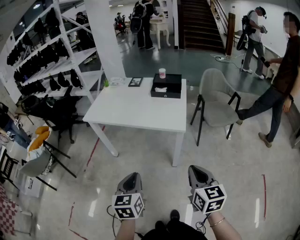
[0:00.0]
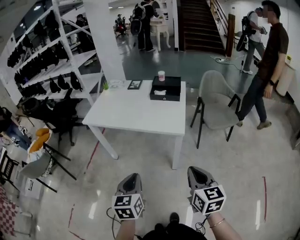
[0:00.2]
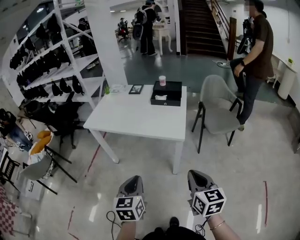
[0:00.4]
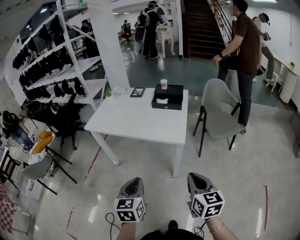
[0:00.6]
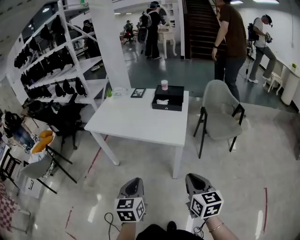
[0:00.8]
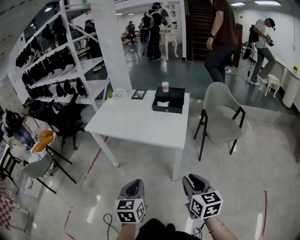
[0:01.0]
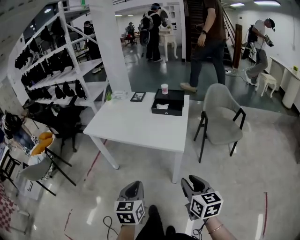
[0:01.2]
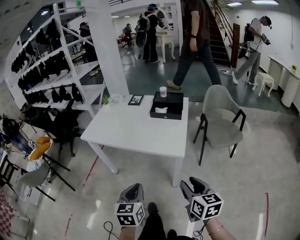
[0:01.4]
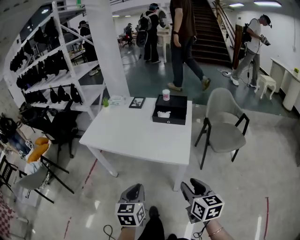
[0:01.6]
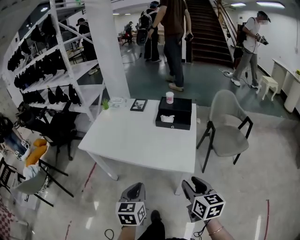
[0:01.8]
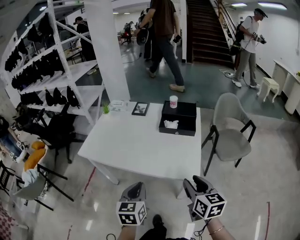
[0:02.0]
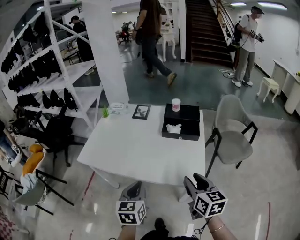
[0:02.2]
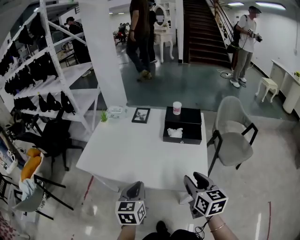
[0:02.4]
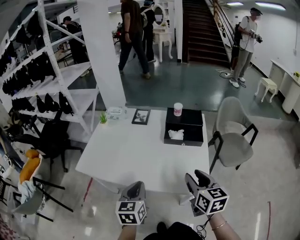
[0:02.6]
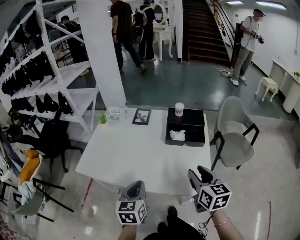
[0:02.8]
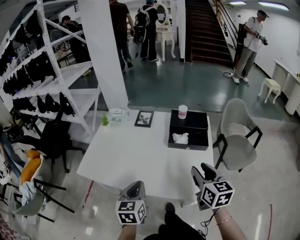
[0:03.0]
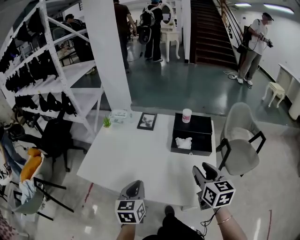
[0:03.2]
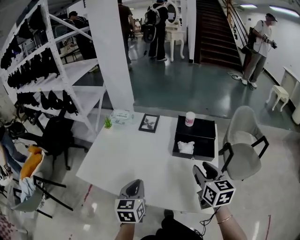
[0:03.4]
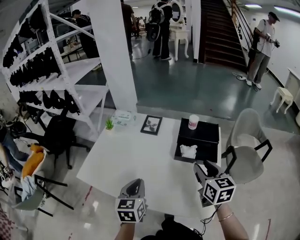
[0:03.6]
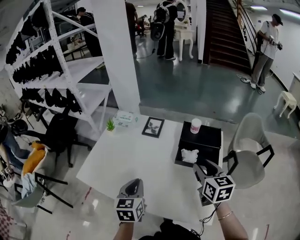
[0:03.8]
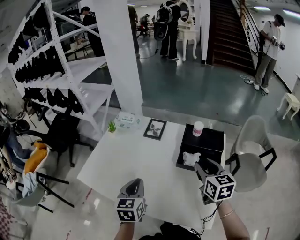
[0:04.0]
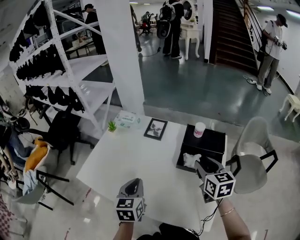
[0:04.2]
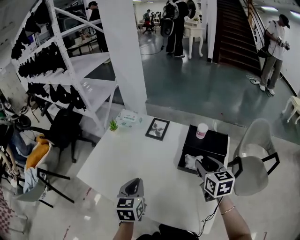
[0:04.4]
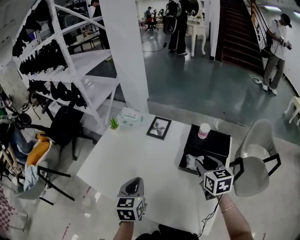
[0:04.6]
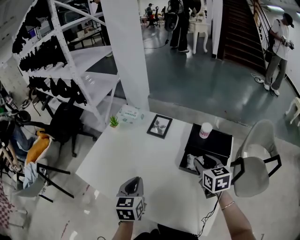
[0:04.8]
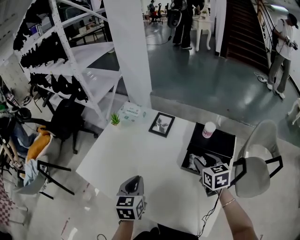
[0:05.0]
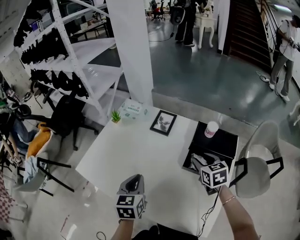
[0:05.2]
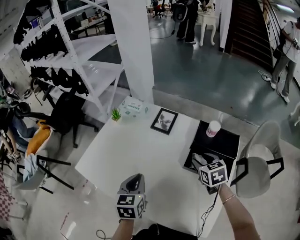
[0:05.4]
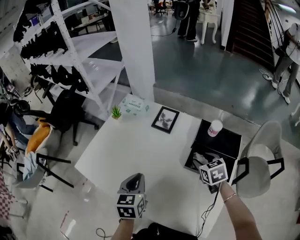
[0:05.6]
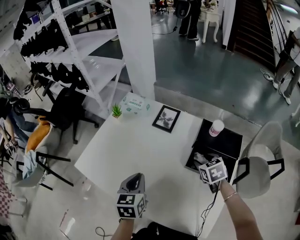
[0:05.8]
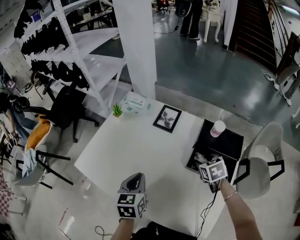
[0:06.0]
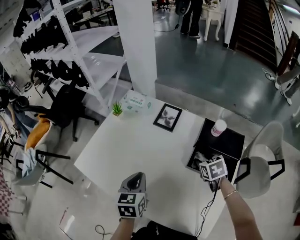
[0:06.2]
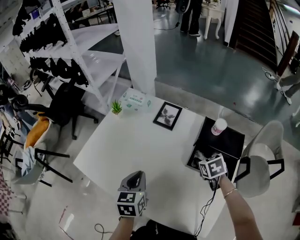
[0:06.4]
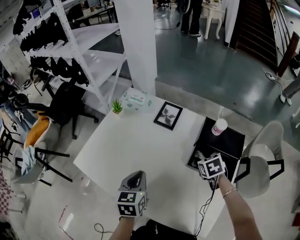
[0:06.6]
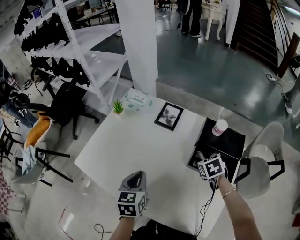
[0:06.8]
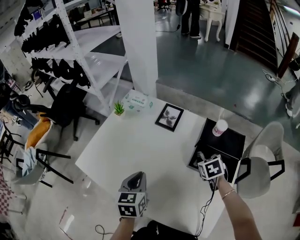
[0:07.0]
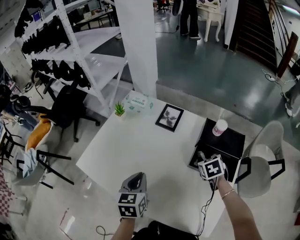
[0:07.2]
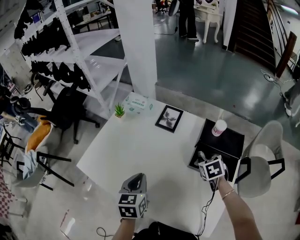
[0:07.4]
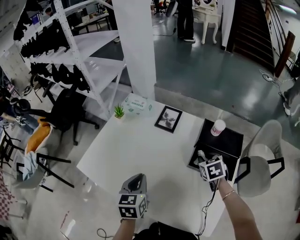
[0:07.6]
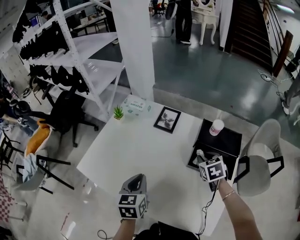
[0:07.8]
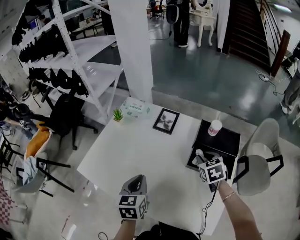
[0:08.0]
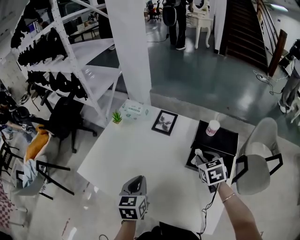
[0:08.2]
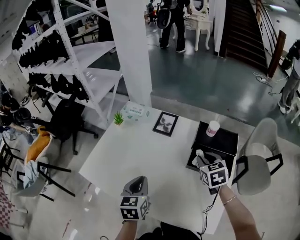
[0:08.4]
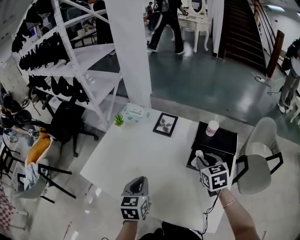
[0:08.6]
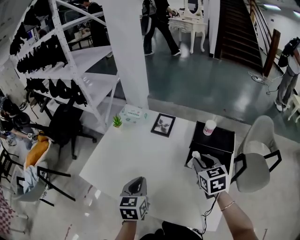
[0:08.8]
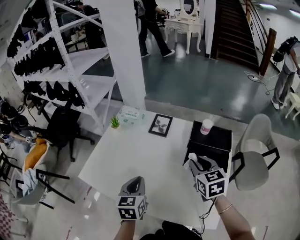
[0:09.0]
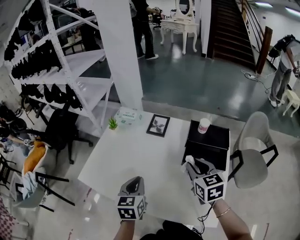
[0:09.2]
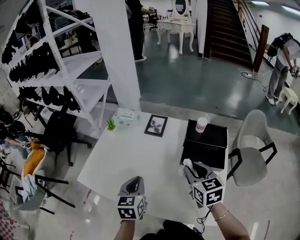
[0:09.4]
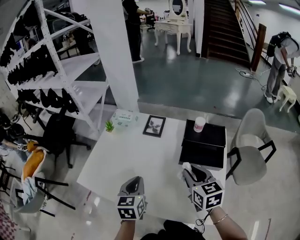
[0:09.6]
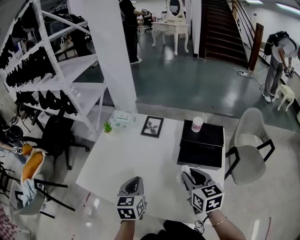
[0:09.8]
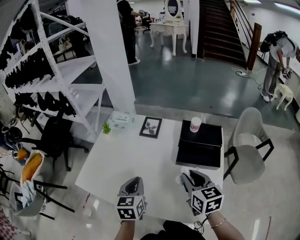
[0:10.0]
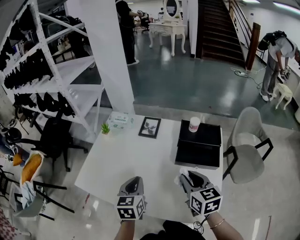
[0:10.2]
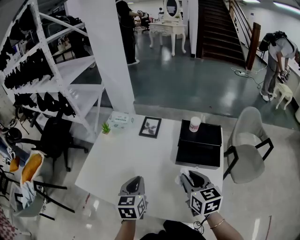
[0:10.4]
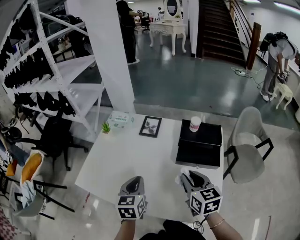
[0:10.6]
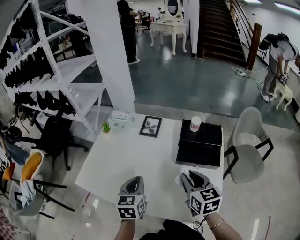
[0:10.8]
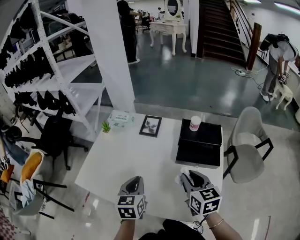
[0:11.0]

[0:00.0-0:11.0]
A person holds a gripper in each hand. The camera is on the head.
0:00.0 to 0:01.6: Both grippers move forward, roughly 15 cm. The right gripper opens up.
0:01.6 to 0:03.2: The grippers both shift forward by about 35 cm.
0:03.2 to 0:04.8: The left gripper is displaced forward by roughly 15 cm. The right gripper shifts roughly 20 cm forward.
0:04.8 to 0:06.2: The right gripper shifts approximately 10 cm downward, and swivels approximately 30 degrees.
0:06.2 to 0:07.8: The right gripper closes up.
0:07.8 to 0:09.4: The right gripper moves upward, backward and to the left, roughly 15 cm, and rotates about 30 degrees.
0:09.4 to 0:11.0: The grippers move only a little.

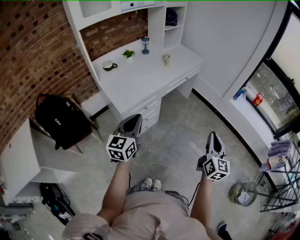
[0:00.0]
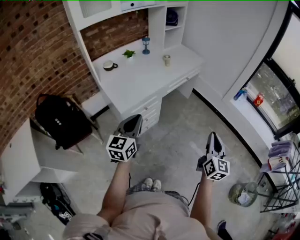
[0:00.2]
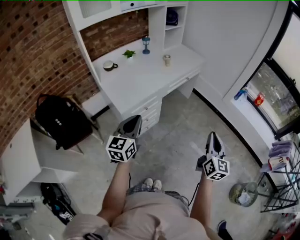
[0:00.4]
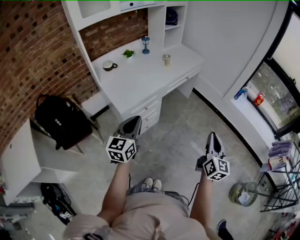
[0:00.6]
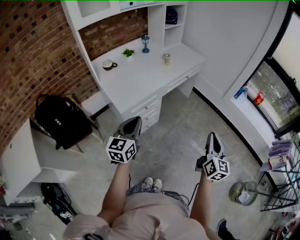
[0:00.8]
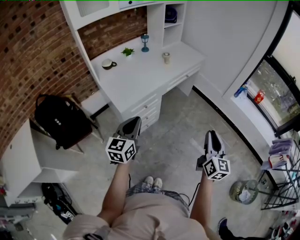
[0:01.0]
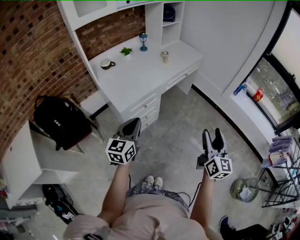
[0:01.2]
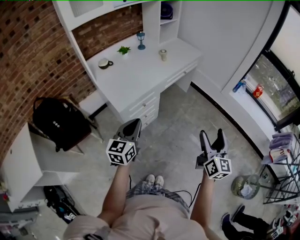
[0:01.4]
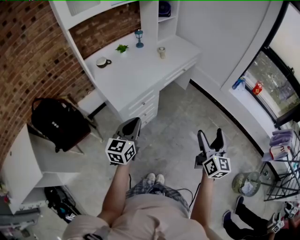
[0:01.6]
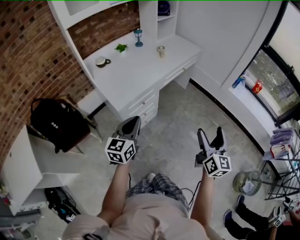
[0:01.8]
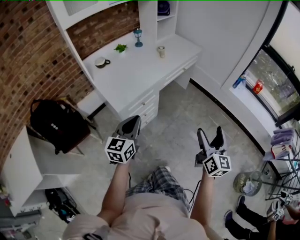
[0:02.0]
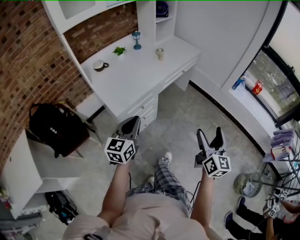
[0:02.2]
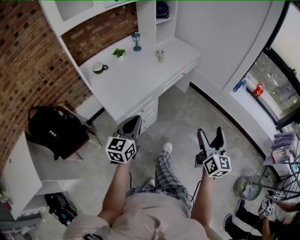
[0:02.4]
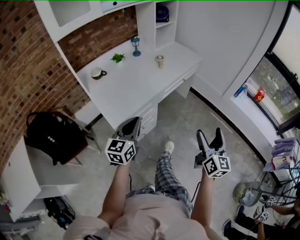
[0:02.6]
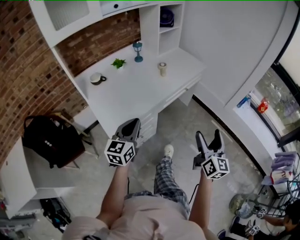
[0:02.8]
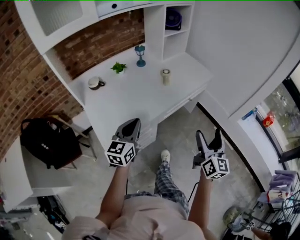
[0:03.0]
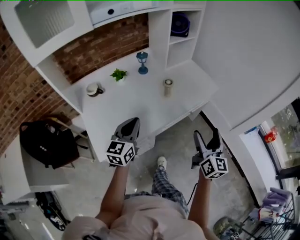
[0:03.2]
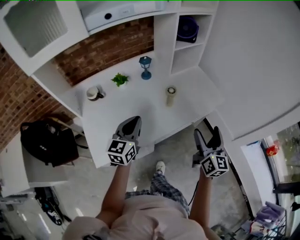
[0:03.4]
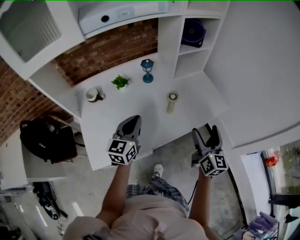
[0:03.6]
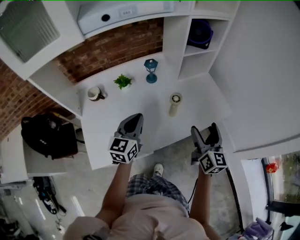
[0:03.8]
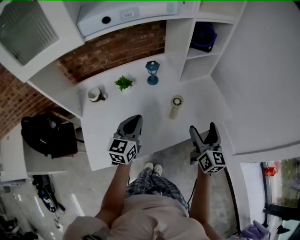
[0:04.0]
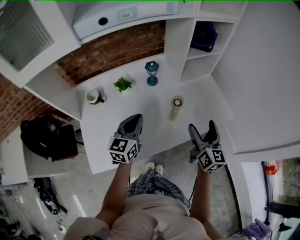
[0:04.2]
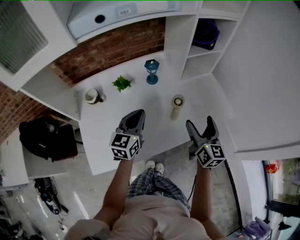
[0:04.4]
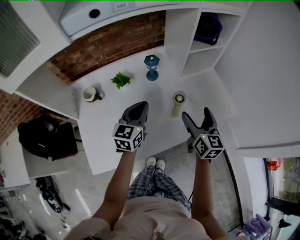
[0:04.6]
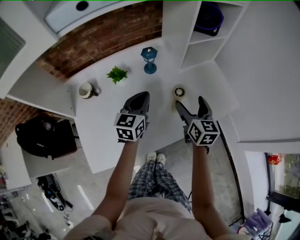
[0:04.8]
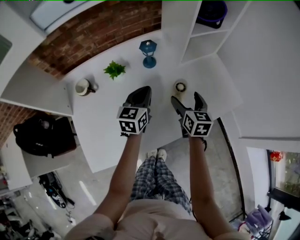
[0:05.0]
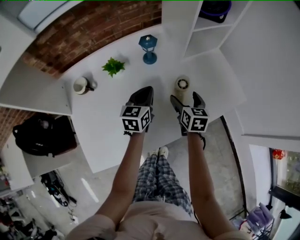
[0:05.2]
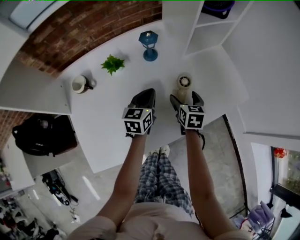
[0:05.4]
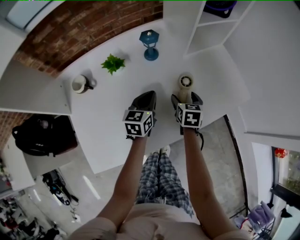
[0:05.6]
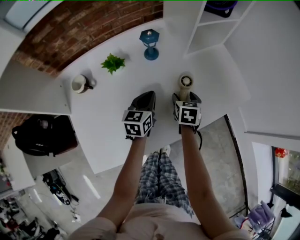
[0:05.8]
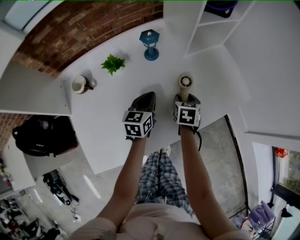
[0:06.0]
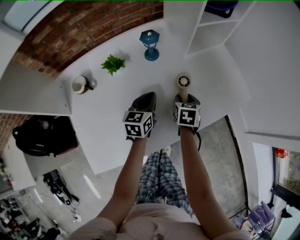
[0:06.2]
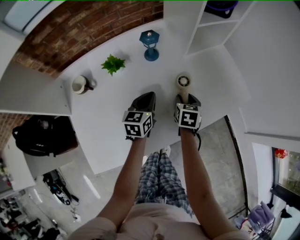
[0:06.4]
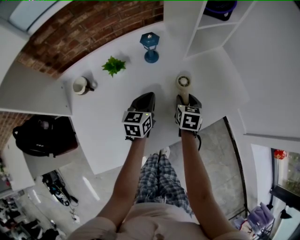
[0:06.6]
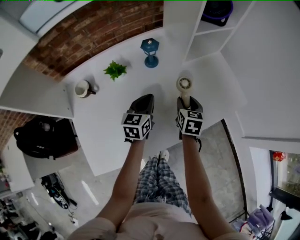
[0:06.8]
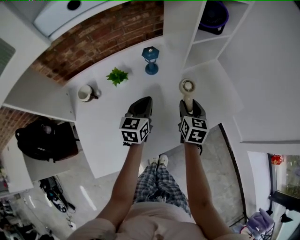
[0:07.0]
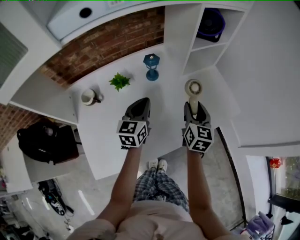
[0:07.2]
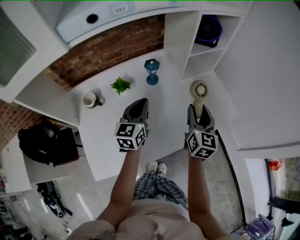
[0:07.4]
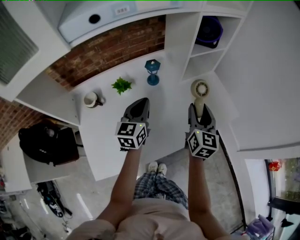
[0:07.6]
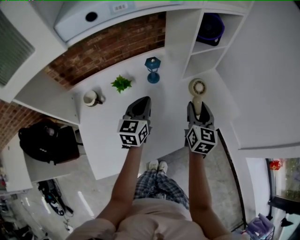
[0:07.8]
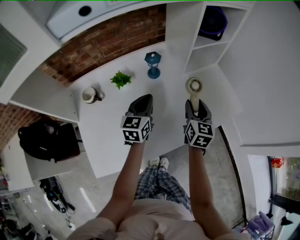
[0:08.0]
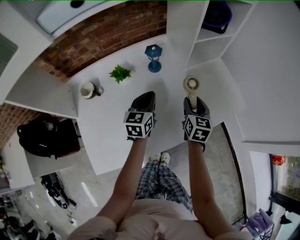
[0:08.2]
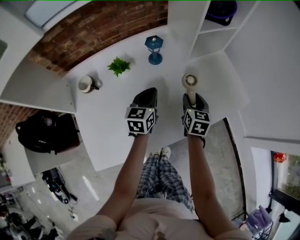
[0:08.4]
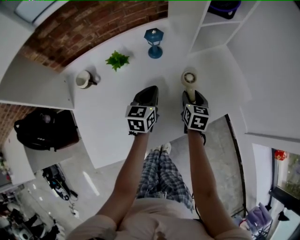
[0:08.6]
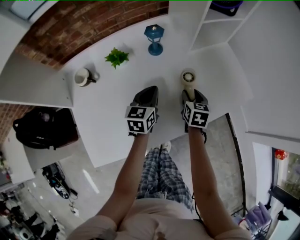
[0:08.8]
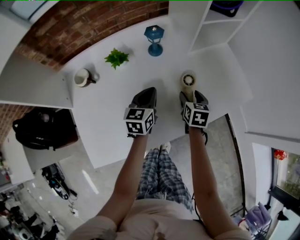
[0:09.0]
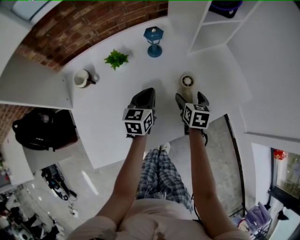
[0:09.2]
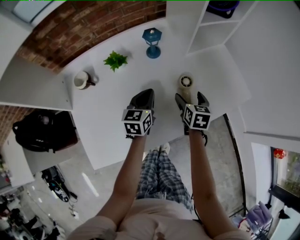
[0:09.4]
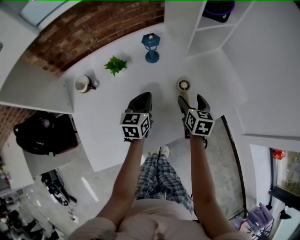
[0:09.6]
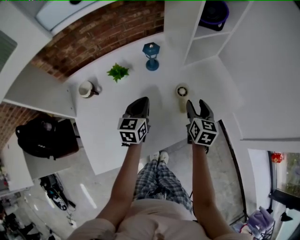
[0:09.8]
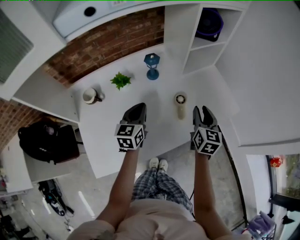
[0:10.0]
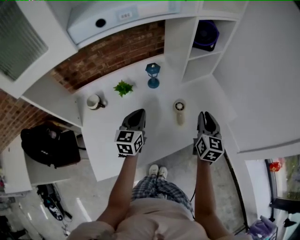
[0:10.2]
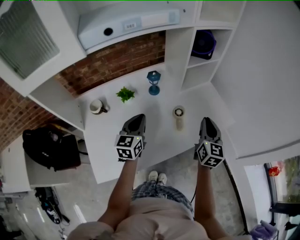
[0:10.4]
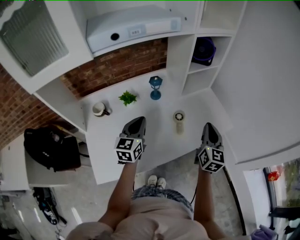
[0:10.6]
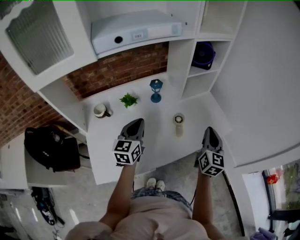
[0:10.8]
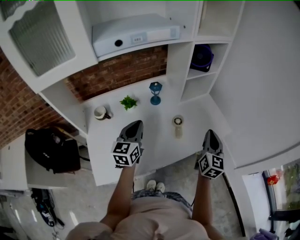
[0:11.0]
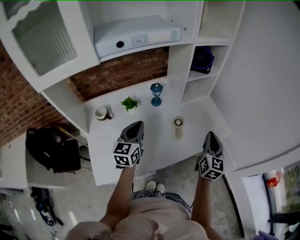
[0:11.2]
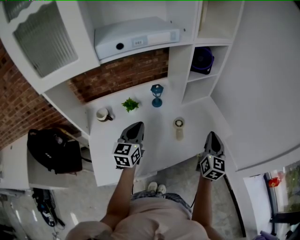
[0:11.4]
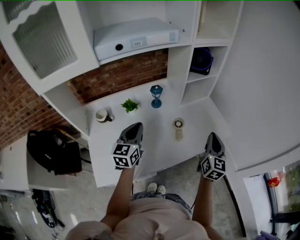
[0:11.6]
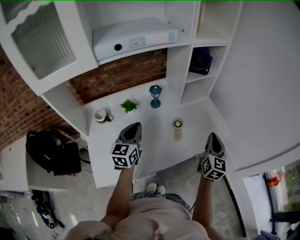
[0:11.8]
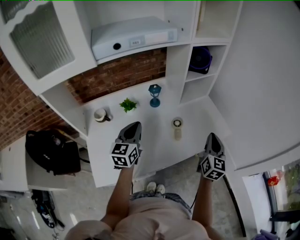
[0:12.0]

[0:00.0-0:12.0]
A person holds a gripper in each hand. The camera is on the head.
0:00.0 to 0:01.6: The right gripper opens.
0:01.6 to 0:03.0: Both grippers move forward, approximately 30 cm.
0:03.0 to 0:04.4: Both grippers move forward, about 35 cm. The right gripper changes its angle by roughly 20 degrees.
0:04.4 to 0:06.0: The right gripper travels downward by some 25 cm, tips its fingers downward by about 40 degrees, and closes, while the left gripper goes about 20 cm downward and forward.
0:06.0 to 0:07.6: Both grippers travel together upward, roughly 20 cm. The right gripper points its fingers some 40 degrees further upward.
0:07.6 to 0:09.0: Both grippers move downward, roughly 20 cm. The right gripper tips its fingers downward by about 30 degrees.
0:09.0 to 0:10.4: The right gripper travels upward by about 25 cm, tilts its fingers approximately 30 degrees upward, and closes. The left gripper travels upward by approximately 15 cm.
0:10.4 to 0:12.0: The right gripper changes place by approximately 5 cm, while the left gripper heads upward, covering approximately 5 cm.

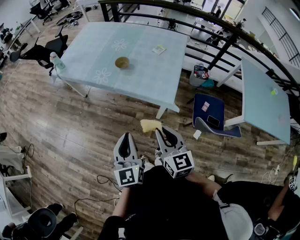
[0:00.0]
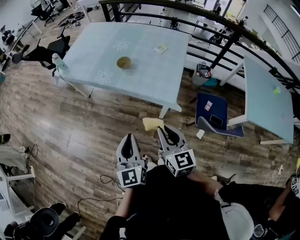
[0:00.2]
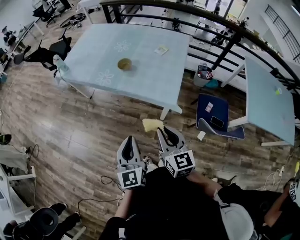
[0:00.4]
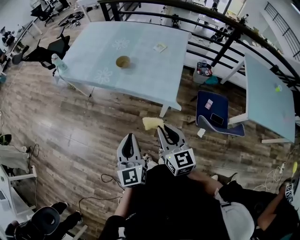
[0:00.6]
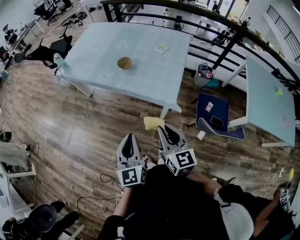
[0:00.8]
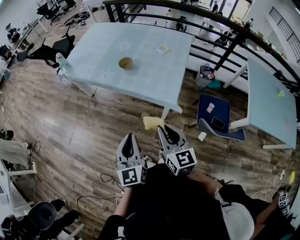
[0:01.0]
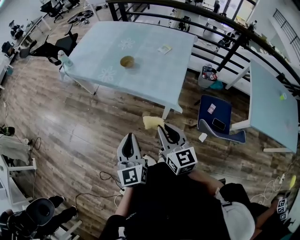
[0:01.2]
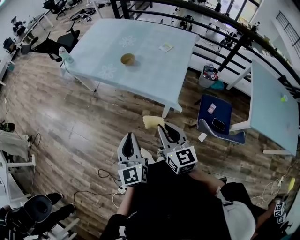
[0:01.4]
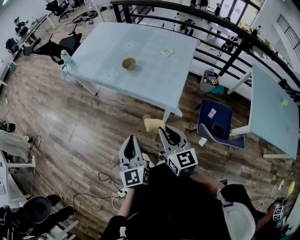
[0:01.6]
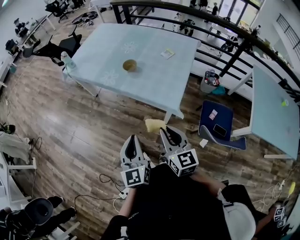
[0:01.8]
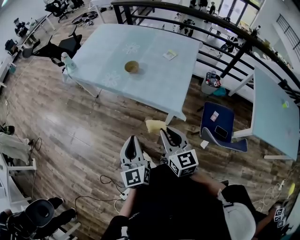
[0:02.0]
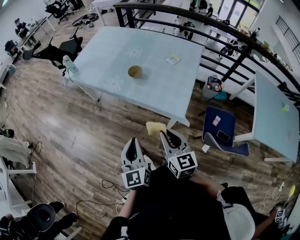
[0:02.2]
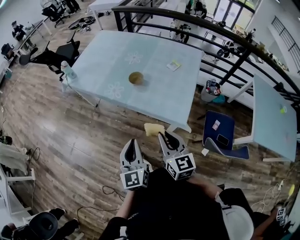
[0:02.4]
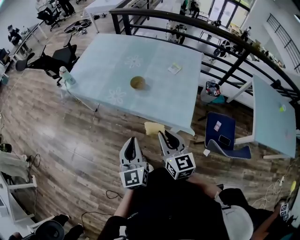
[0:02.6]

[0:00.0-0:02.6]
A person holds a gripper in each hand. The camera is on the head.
0:00.0 to 0:01.2: The left gripper shifts by some 5 cm.
0:01.2 to 0:02.6: The right gripper goes approximately 15 cm forward and to the left. Meanwhile the left gripper heads forward, covering roughly 15 cm.
